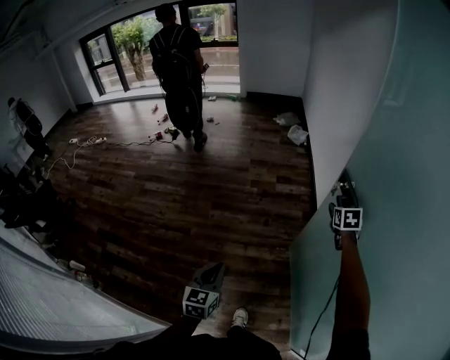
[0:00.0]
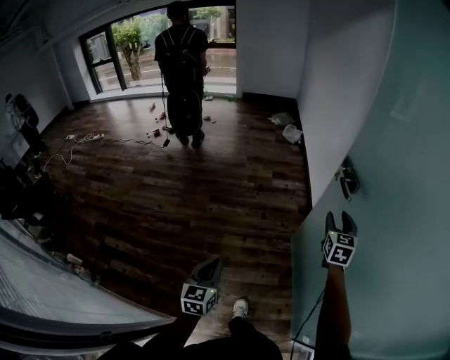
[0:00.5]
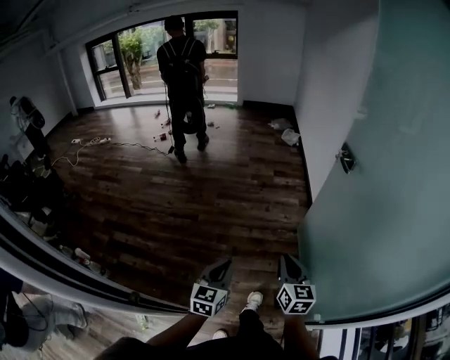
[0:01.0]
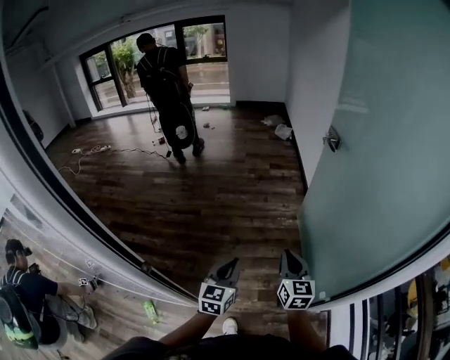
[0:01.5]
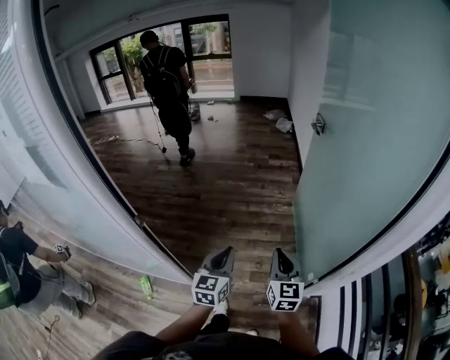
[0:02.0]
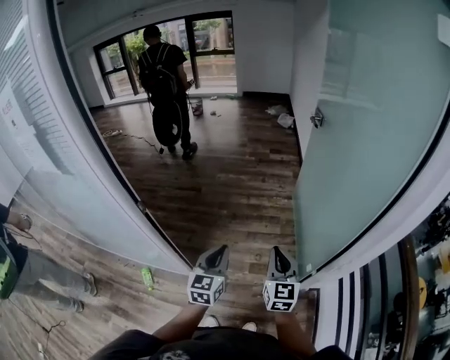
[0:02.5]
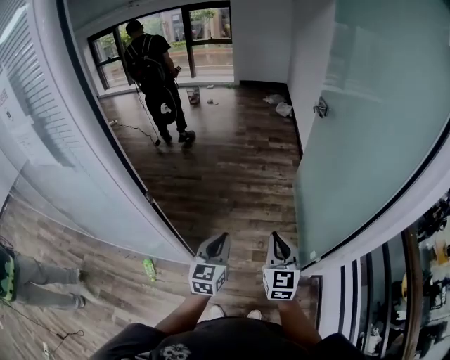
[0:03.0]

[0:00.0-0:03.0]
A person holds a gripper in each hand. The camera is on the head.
0:00.0 to 0:01.5: The two grippers travel together, backward, some 60 cm. The right gripper rotates approximately 30 degrees, and closes.
0:01.5 to 0:03.0: The grippers both shift backward by roughly 25 cm.

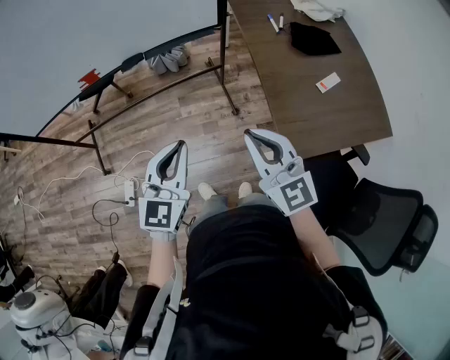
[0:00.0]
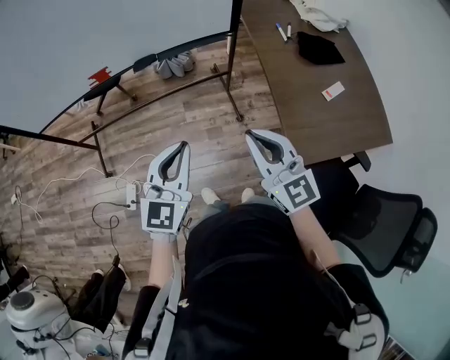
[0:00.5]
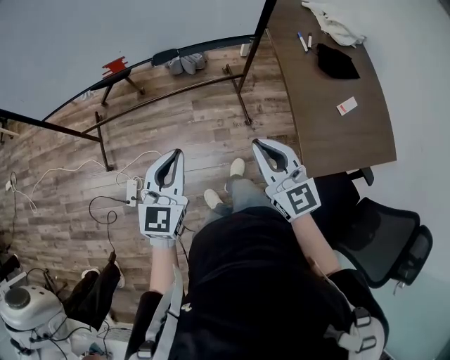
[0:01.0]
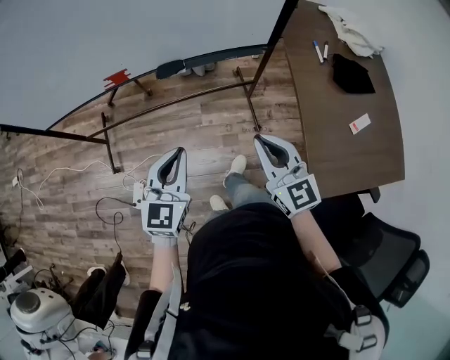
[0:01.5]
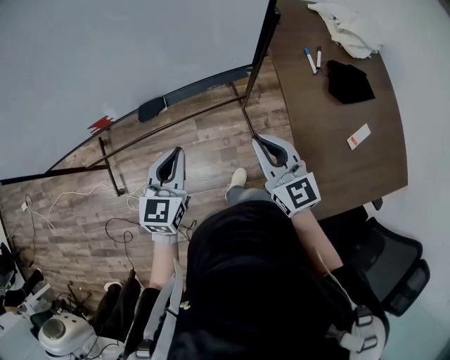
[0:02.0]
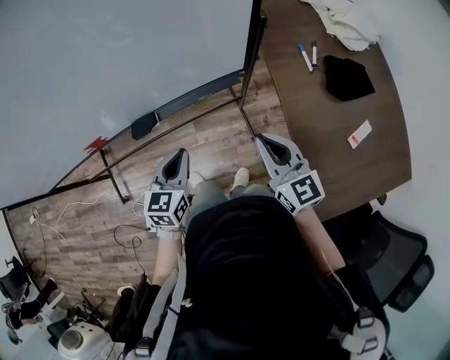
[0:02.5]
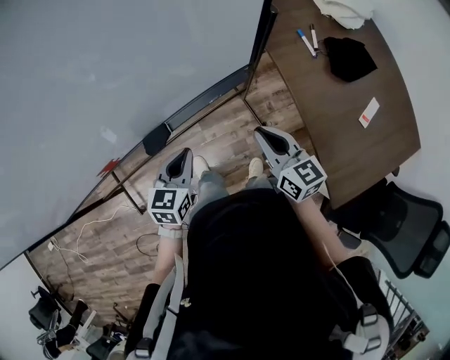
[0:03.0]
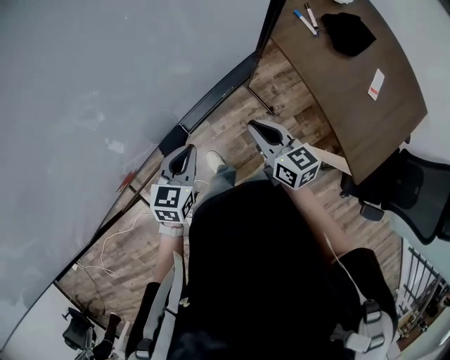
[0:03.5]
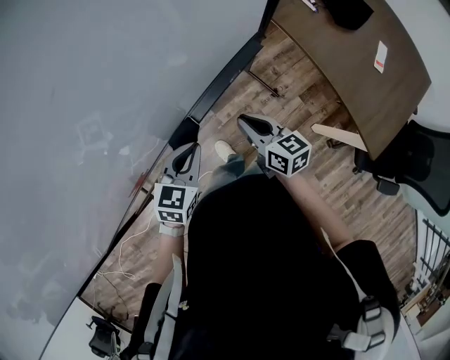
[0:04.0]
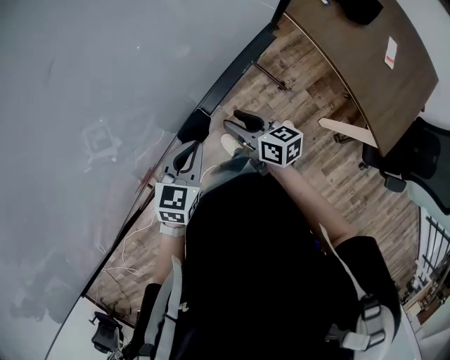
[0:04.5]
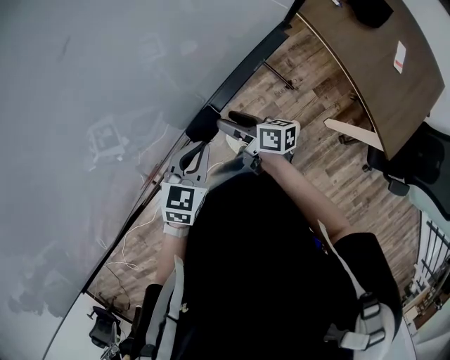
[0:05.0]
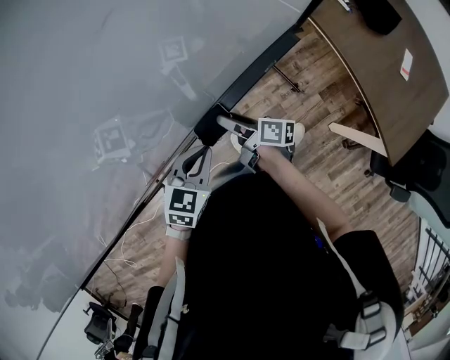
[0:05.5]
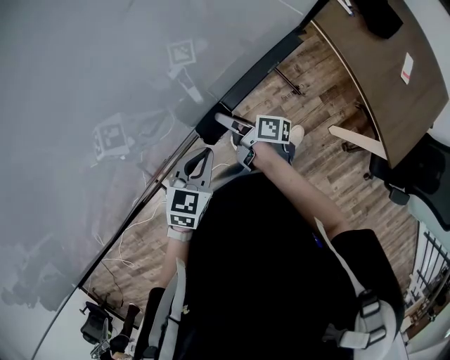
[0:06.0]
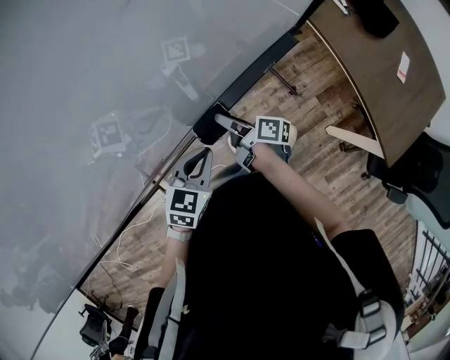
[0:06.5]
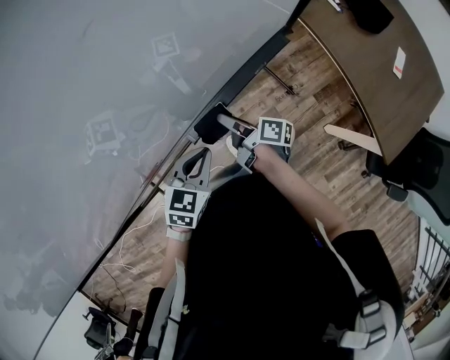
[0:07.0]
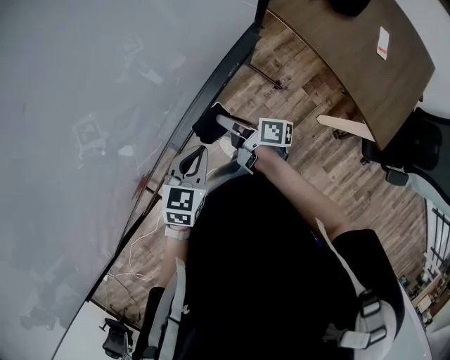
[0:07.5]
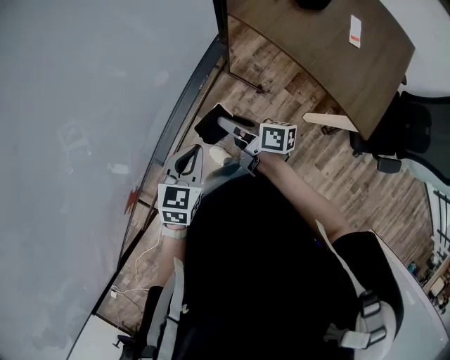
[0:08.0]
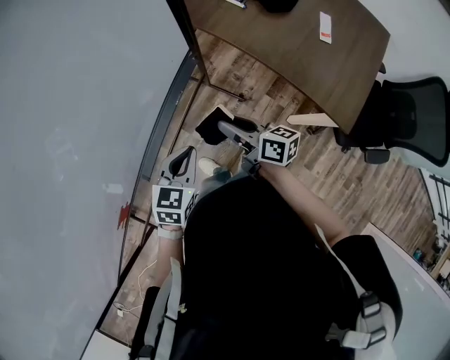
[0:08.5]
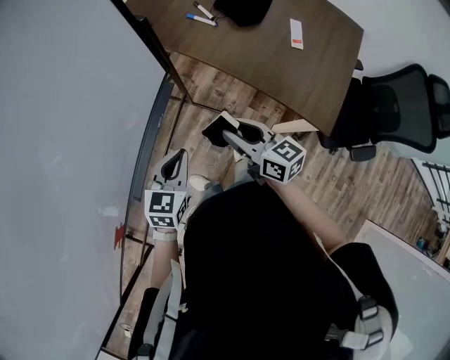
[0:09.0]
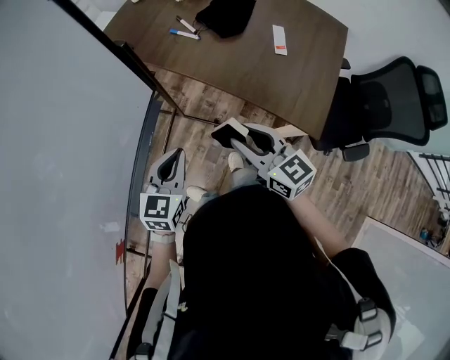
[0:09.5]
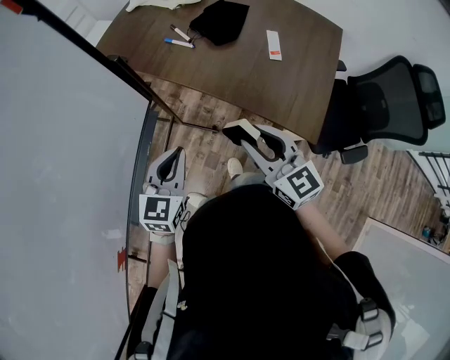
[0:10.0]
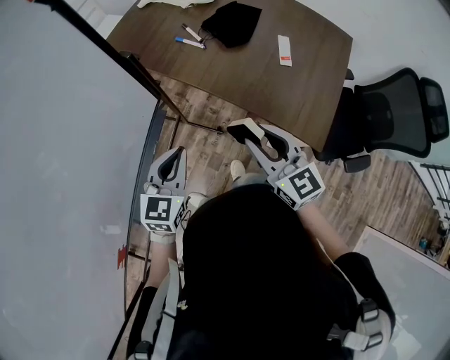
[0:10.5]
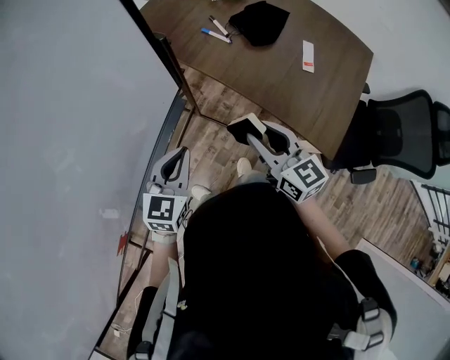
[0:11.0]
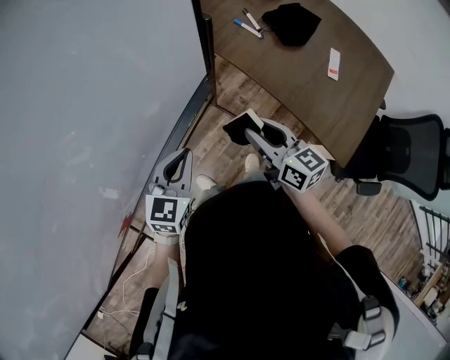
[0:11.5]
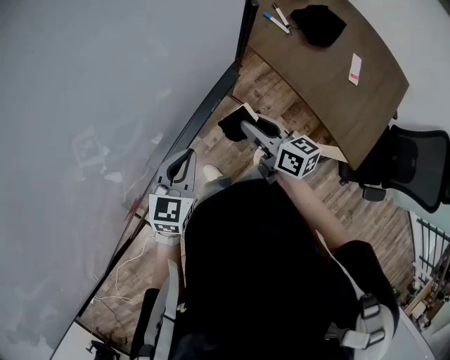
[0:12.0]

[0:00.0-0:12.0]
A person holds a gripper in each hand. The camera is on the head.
0:00.0 to 0:02.0: The grippers both shift forward by about 30 cm.
0:02.0 to 0:04.0: The right gripper moves approximately 25 cm, and swivels roughly 40 degrees. Meanwhile the left gripper changes place by about 20 cm, and swivels some 40 degrees.
0:04.0 to 0:06.0: The left gripper is displaced to the left by some 5 cm; the right gripper is displaced to the left and downward by some 20 cm, twists some 50 degrees clockwise, seen from behind, and opens.
0:06.0 to 0:08.0: The grippers both shift to the right by approximately 15 cm. The right gripper closes.
0:08.0 to 0:10.0: The right gripper shifts roughly 30 cm to the right and upward, and rolls counterclockwise, seen from behind, by approximately 60 degrees. Meanwhile the left gripper travels to the right, upward and forward by roughly 20 cm, and changes its angle by about 20 degrees.
0:10.0 to 0:12.0: The right gripper heads to the left and downward, covering roughly 25 cm, and rotates roughly 40 degrees. Meanwhile the left gripper heads to the left, covering some 20 cm.

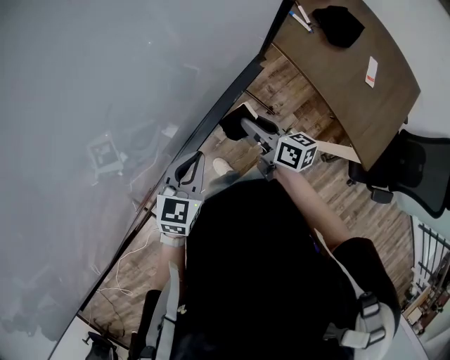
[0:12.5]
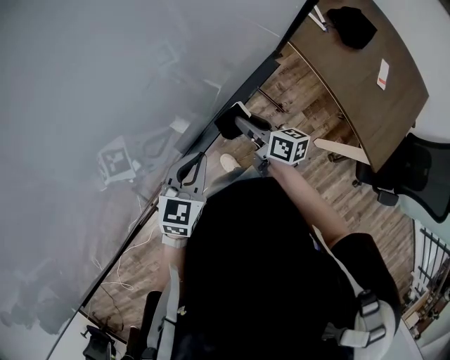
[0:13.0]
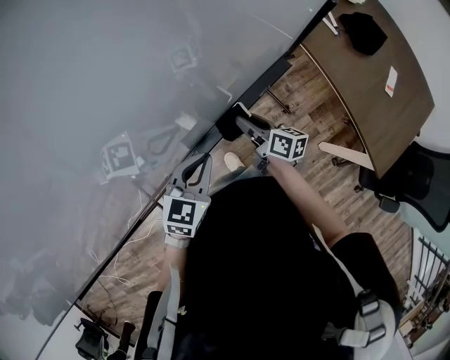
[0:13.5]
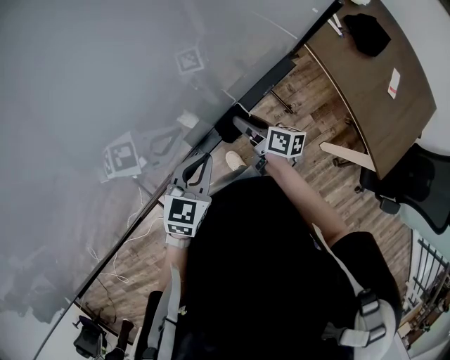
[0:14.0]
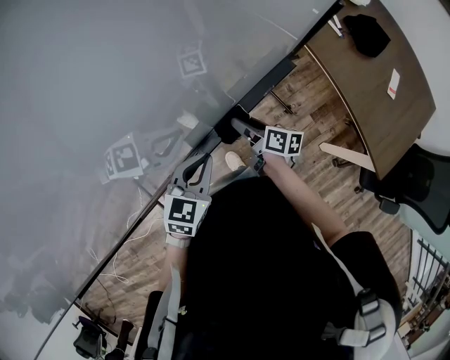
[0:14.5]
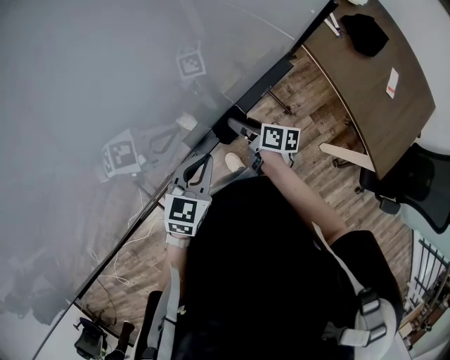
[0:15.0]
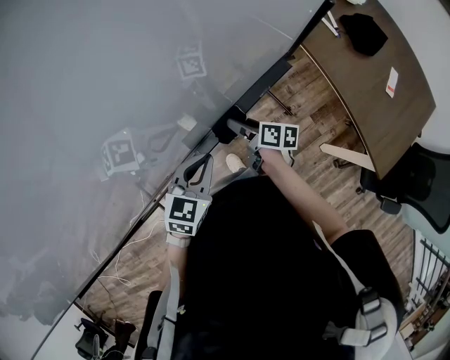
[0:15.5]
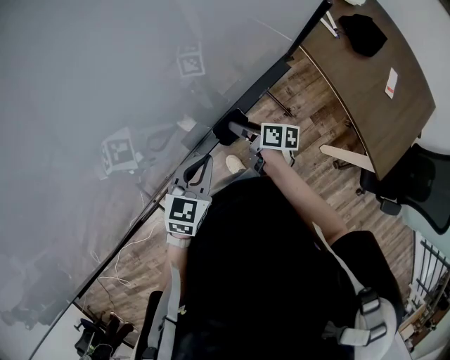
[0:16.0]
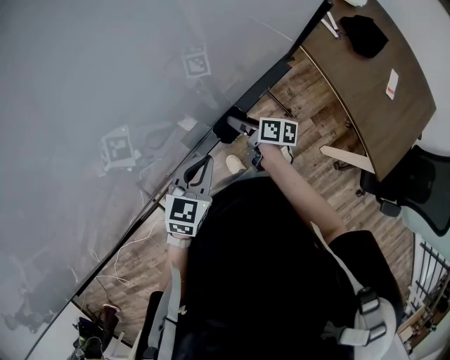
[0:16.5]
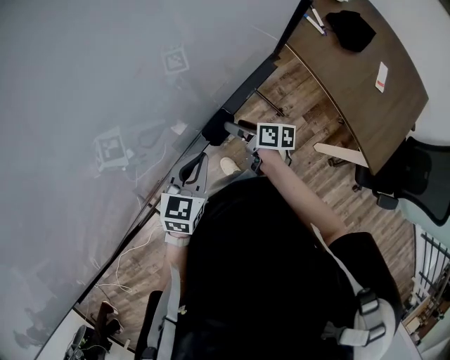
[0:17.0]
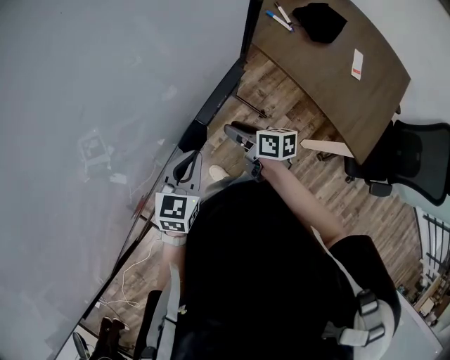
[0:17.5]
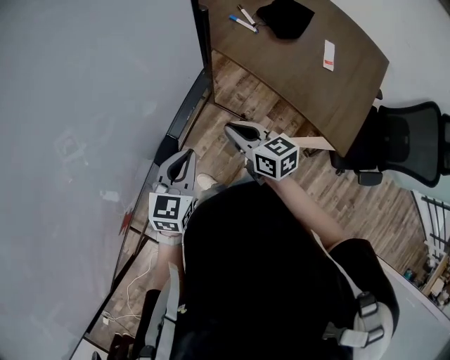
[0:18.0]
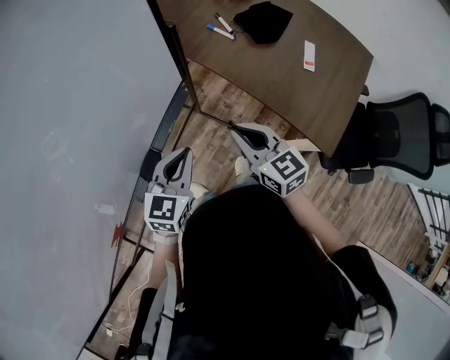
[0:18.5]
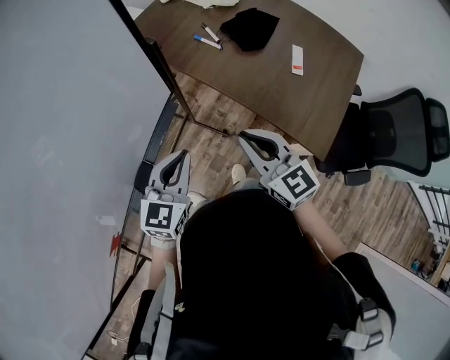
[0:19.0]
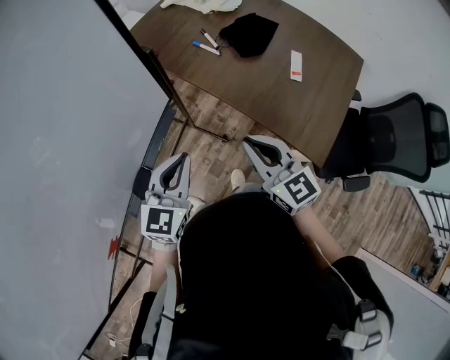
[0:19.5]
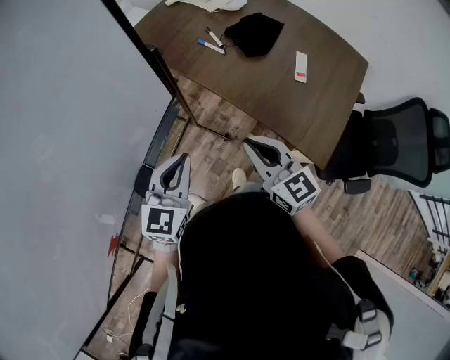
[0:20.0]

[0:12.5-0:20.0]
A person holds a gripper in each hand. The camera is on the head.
0:12.5 to 0:14.5: The left gripper shifts roughly 5 cm to the left, while the right gripper shifts some 15 cm to the left and downward.
0:14.5 to 0:16.5: The grippers make only small movements.
0:16.5 to 0:18.0: The left gripper is displaced to the right by some 15 cm. Meanwhile the right gripper goes some 25 cm to the right and upward, swivels approximately 40 degrees, and closes.
0:18.0 to 0:20.0: Both grippers move to the right and upward, approximately 15 cm. The right gripper changes its angle by about 20 degrees.

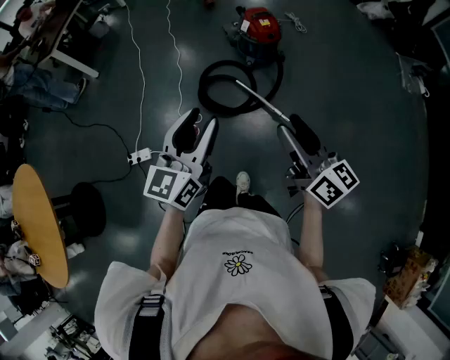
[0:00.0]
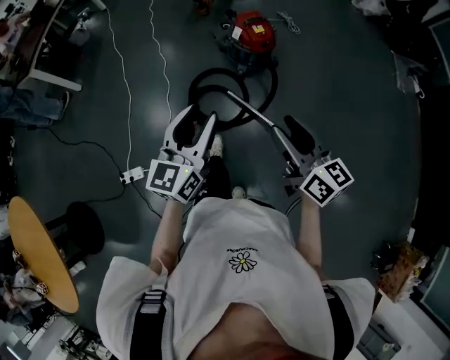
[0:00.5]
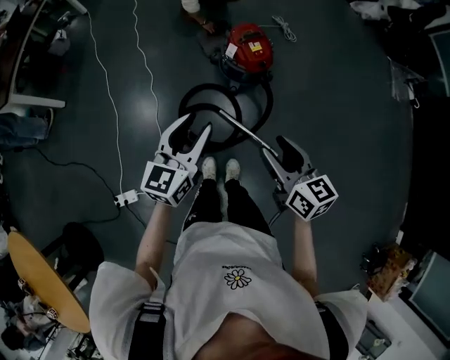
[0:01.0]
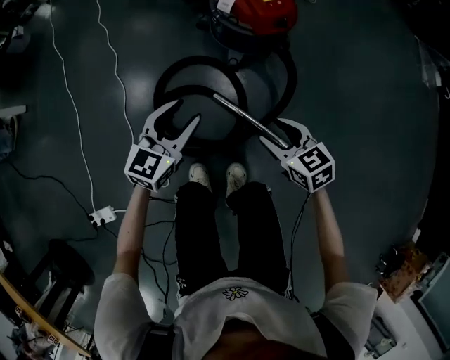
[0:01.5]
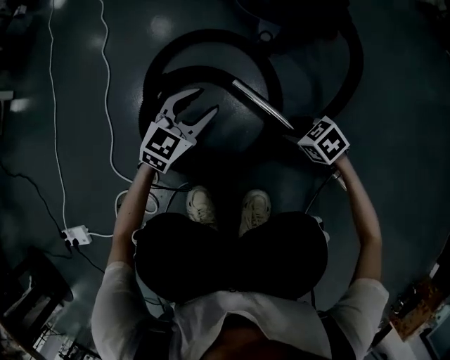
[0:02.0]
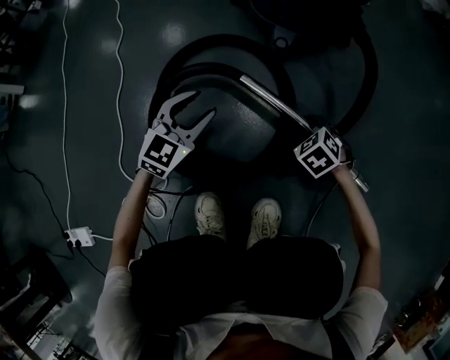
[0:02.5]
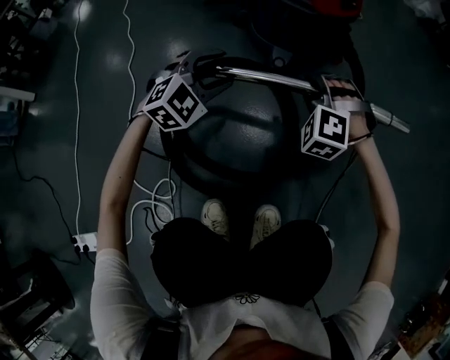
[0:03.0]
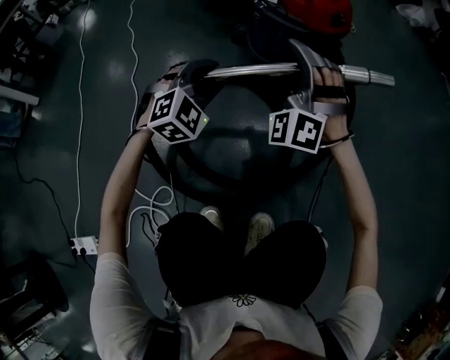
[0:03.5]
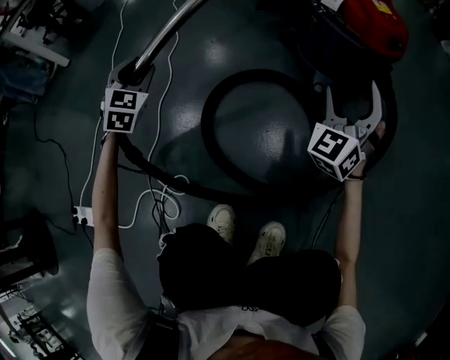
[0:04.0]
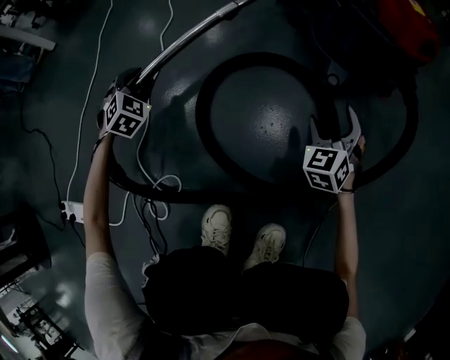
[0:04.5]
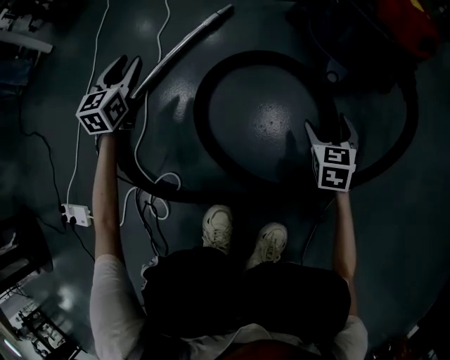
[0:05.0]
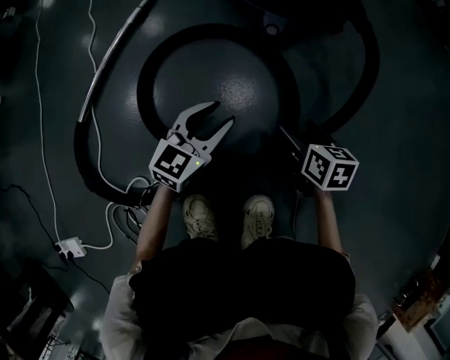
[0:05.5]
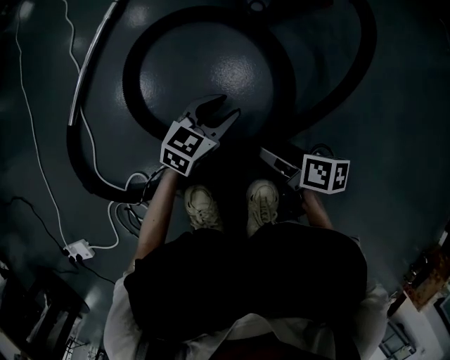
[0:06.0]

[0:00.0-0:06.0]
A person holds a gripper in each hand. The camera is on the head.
0:00.0 to 0:02.0: Both grippers are carried forward, about 40 cm. Both grippers move downward, about 90 cm. The left gripper rotates about 40 degrees. Meanwhile the right gripper angles its fingers downward, by about 70 degrees.
0:02.0 to 0:04.0: The right gripper goes approximately 25 cm upward, tilts its fingers some 60 degrees upward, and opens its fingers. The left gripper changes place by roughly 35 cm, and swivels approximately 50 degrees.
0:04.0 to 0:06.0: The right gripper goes about 40 cm backward and downward, and rolls clockwise, seen from behind, by approximately 90 degrees. The left gripper travels to the right and downward by about 40 cm, and changes its angle by roughly 60 degrees.
